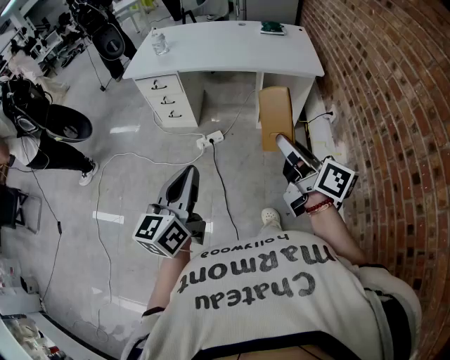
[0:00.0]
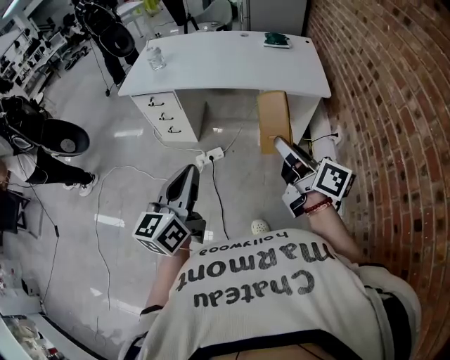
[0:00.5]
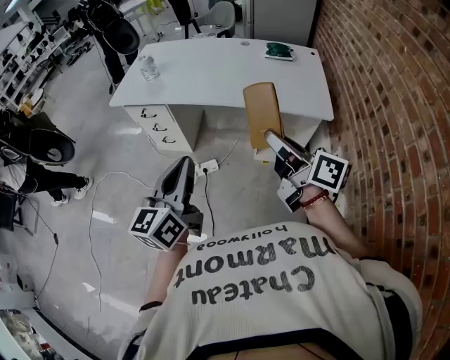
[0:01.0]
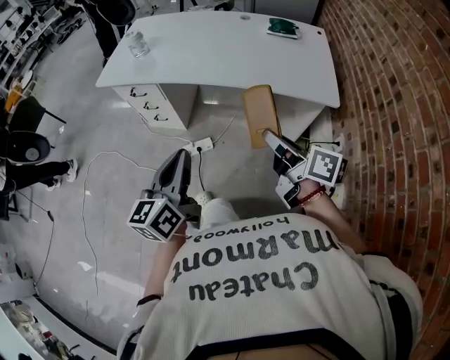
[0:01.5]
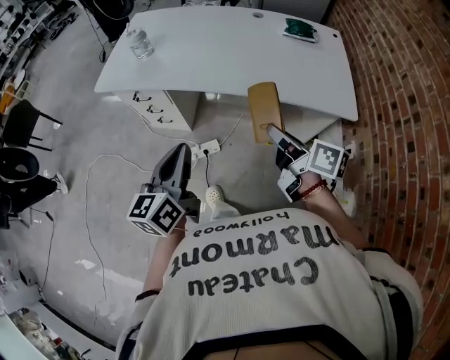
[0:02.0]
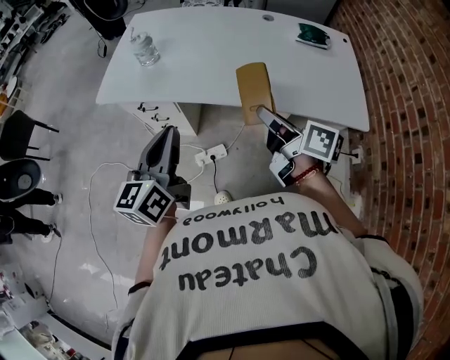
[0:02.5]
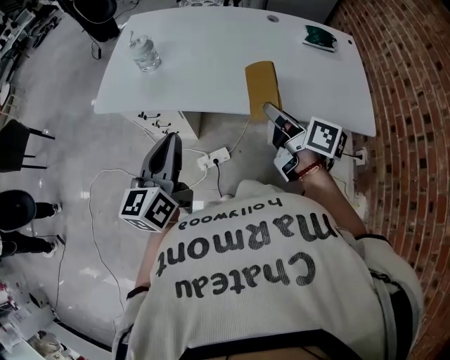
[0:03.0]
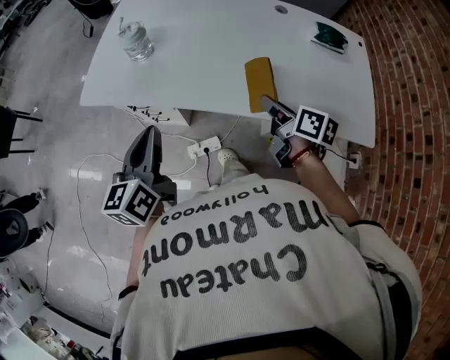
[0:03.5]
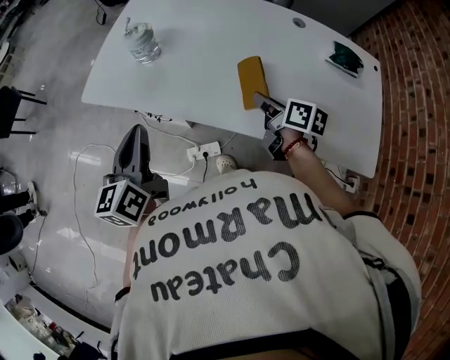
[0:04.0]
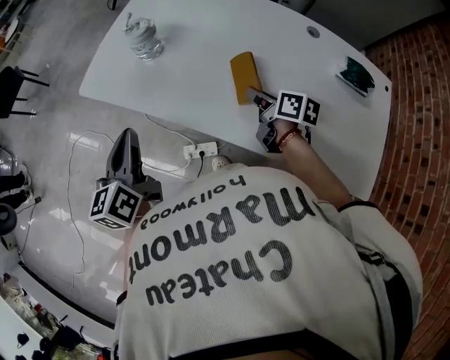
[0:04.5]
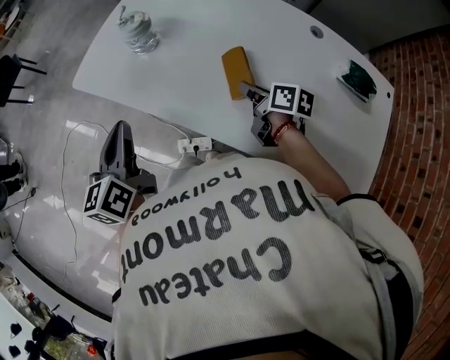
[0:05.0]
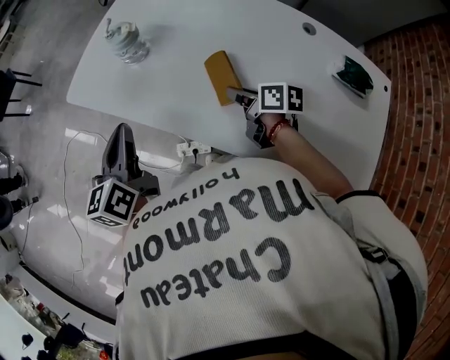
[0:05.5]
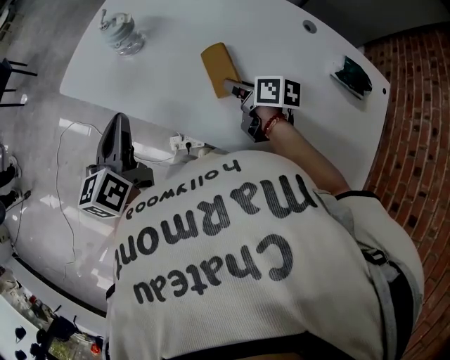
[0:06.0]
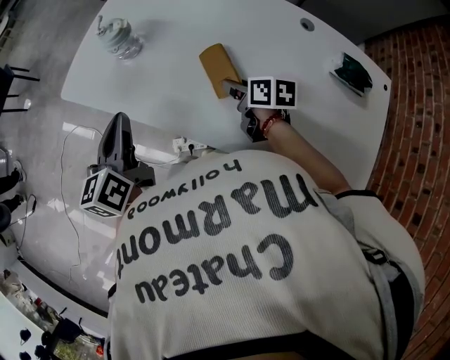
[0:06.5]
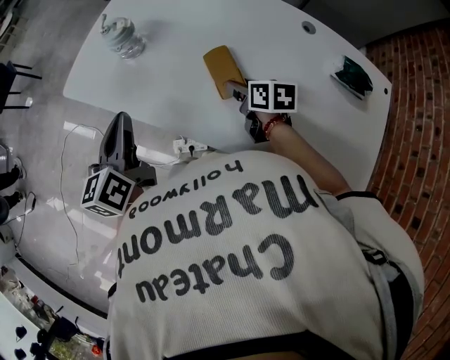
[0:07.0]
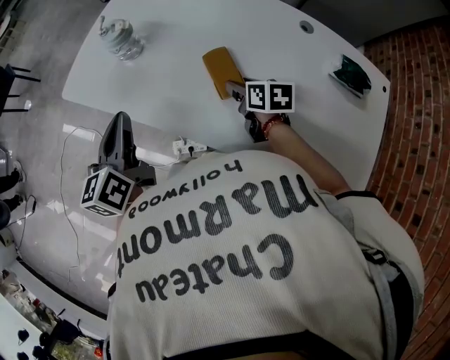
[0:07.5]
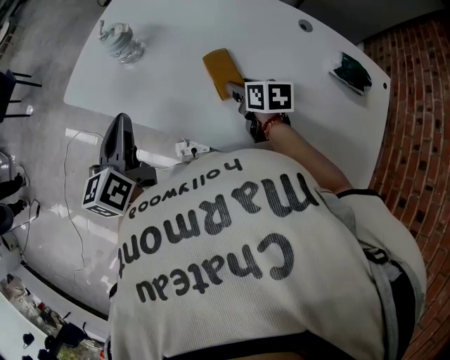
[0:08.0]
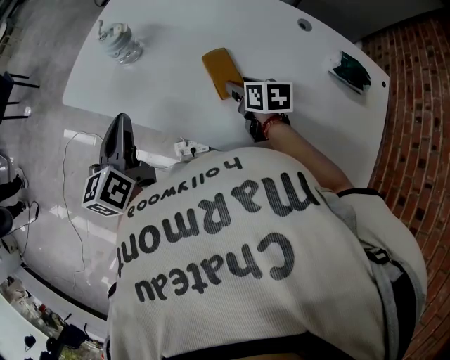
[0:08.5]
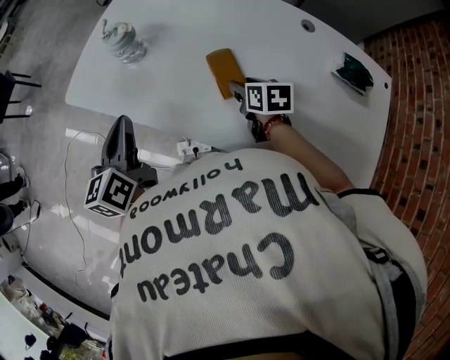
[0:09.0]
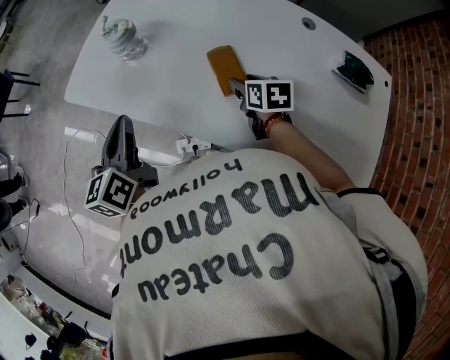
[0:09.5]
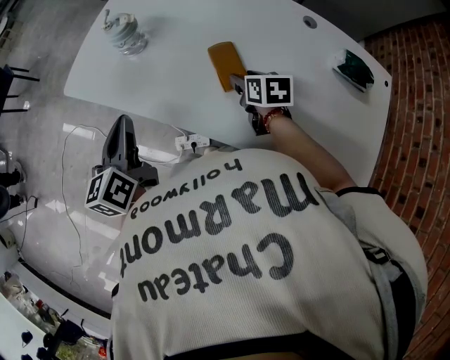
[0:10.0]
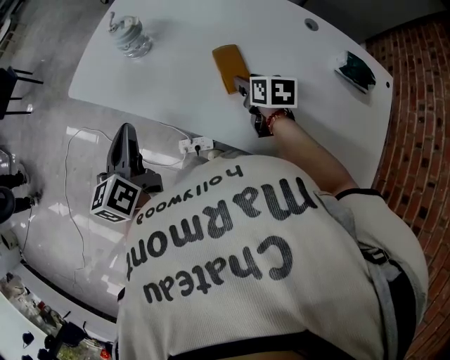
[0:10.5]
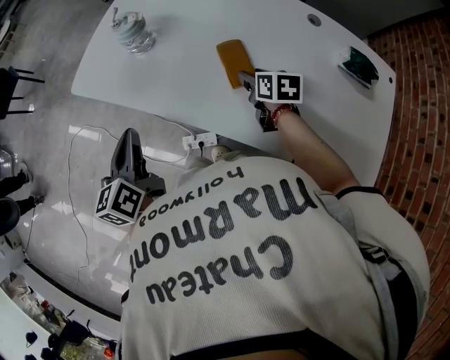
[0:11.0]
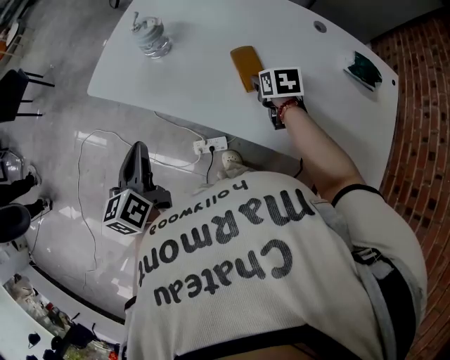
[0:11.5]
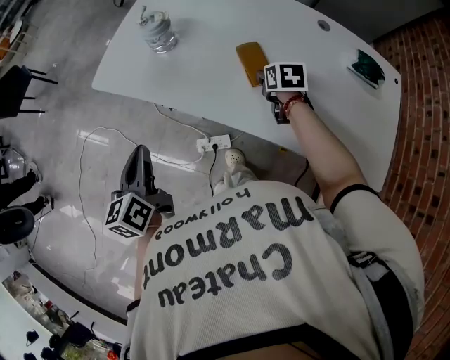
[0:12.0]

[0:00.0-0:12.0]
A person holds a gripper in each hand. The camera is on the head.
0:00.0 to 0:02.0: The two grippers travel together, forward, roughly 40 cm. The right gripper rotates about 20 degrees.
0:02.0 to 0:04.0: The left gripper moves forward and to the left, roughly 30 cm, while the right gripper travels forward by about 35 cm.
0:04.0 to 0:06.0: The right gripper is displaced forward and downward by approximately 10 cm, and rotates approximately 20 degrees. Meanwhile the left gripper moves forward, about 5 cm.
0:06.0 to 0:08.0: The right gripper opens up.
0:08.0 to 0:10.0: The grippers make only small movements.
0:10.0 to 0:12.0: The left gripper moves backward and to the left, about 10 cm.

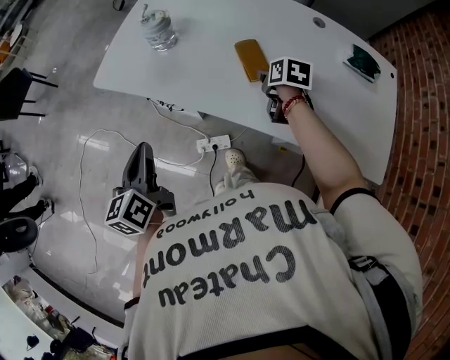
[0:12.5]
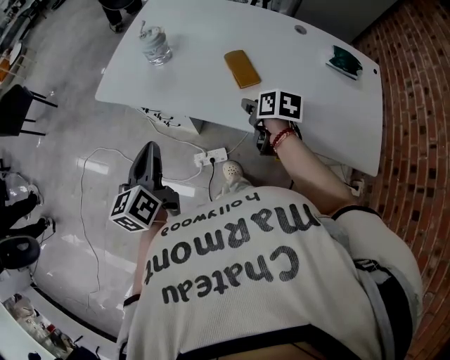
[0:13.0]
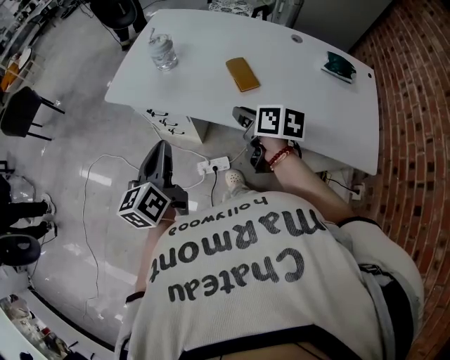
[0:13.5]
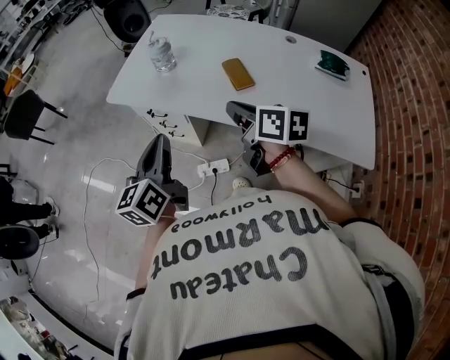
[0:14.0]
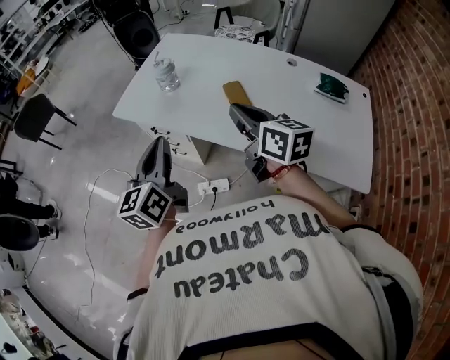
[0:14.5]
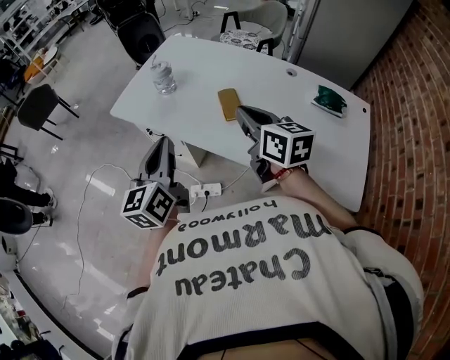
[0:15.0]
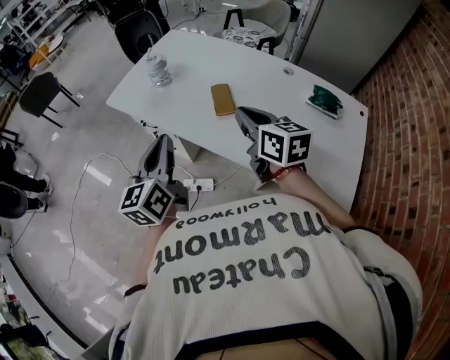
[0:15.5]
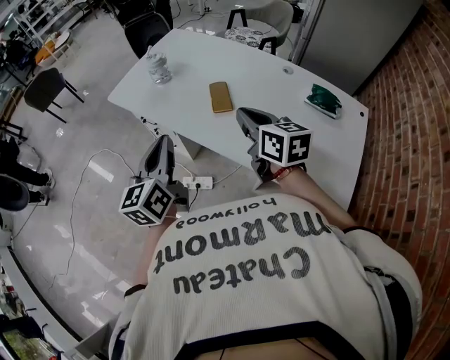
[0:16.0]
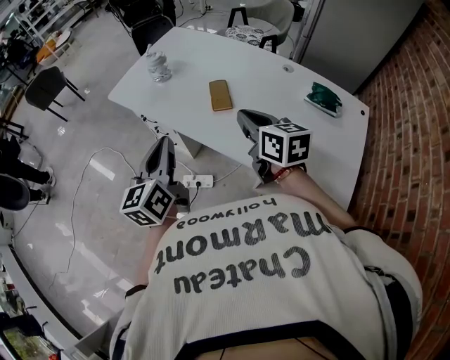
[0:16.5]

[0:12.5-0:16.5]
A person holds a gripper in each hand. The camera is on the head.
0:12.5 to 0:14.5: The left gripper travels upward, to the right and backward by some 15 cm; the right gripper travels upward, backward and to the left by some 30 cm, points its fingers roughly 40 degrees further upward, and closes its fingers.
0:14.5 to 0:16.5: The left gripper goes approximately 15 cm to the right and backward. The right gripper heads to the right, covering about 10 cm.

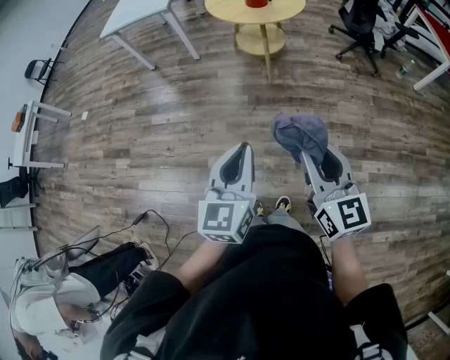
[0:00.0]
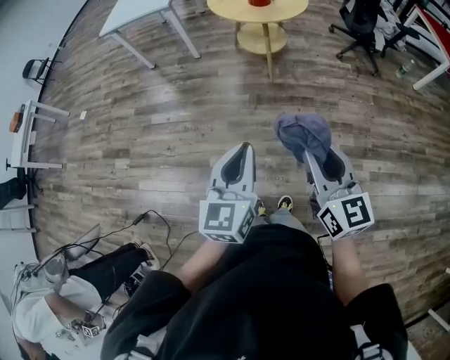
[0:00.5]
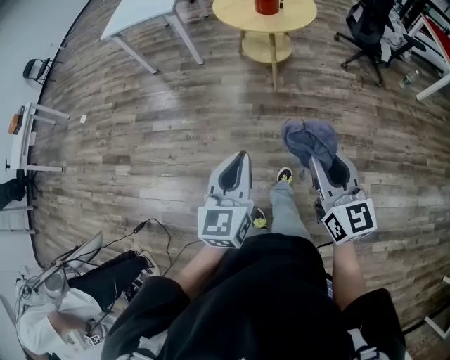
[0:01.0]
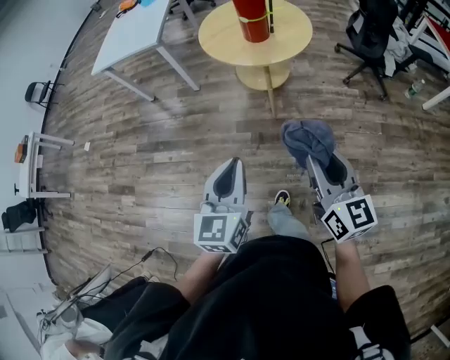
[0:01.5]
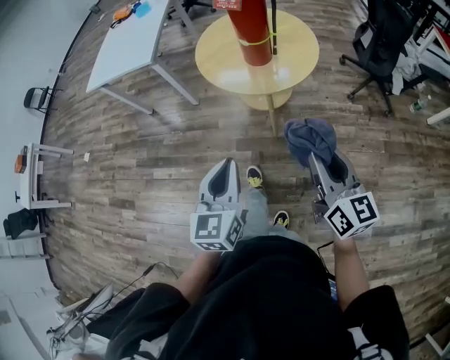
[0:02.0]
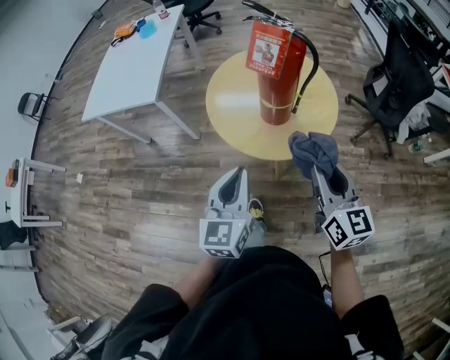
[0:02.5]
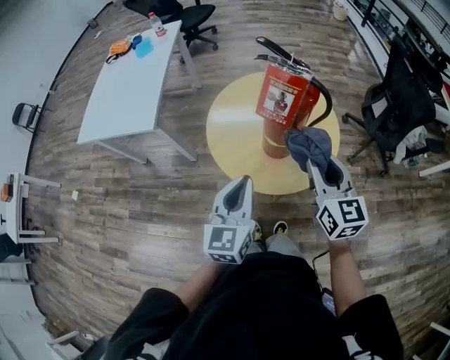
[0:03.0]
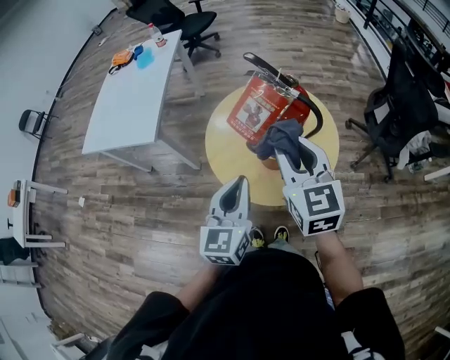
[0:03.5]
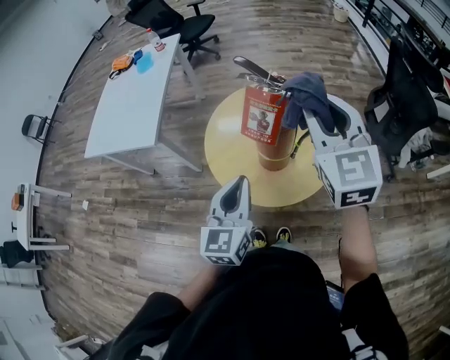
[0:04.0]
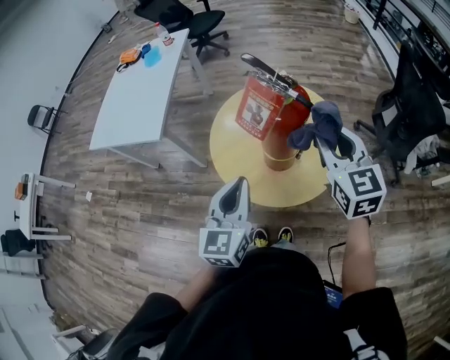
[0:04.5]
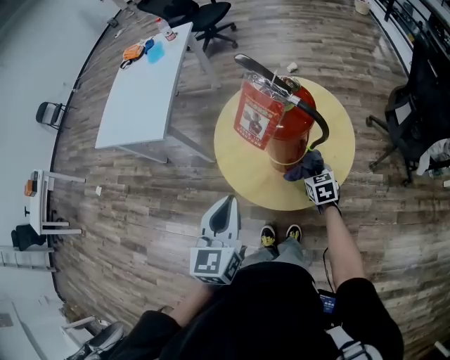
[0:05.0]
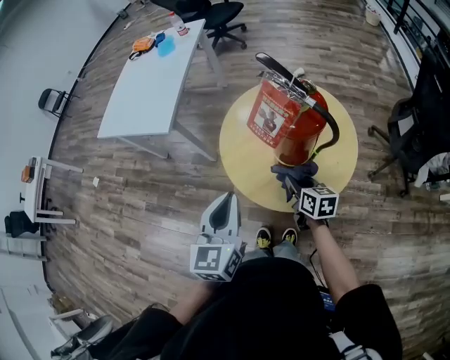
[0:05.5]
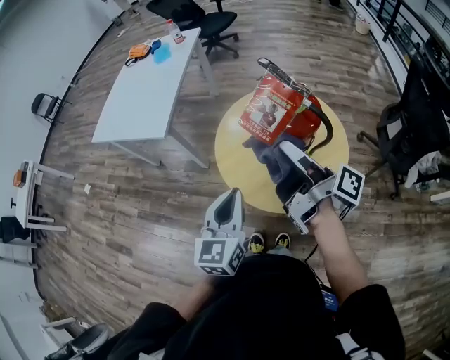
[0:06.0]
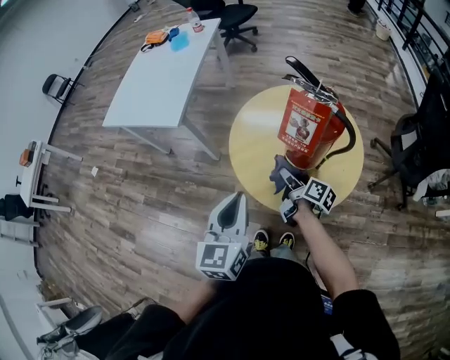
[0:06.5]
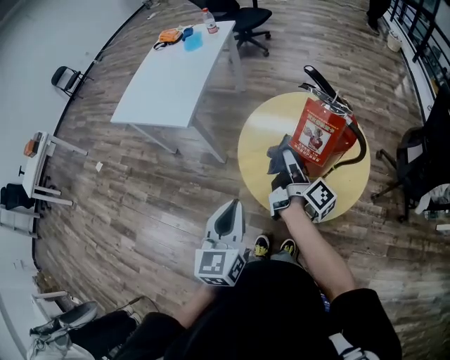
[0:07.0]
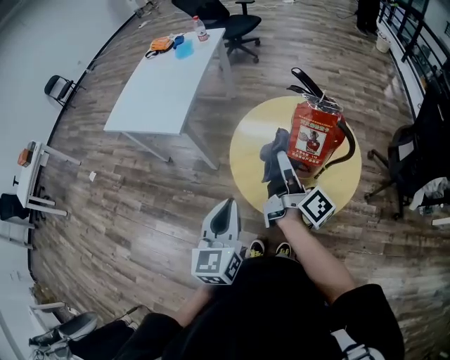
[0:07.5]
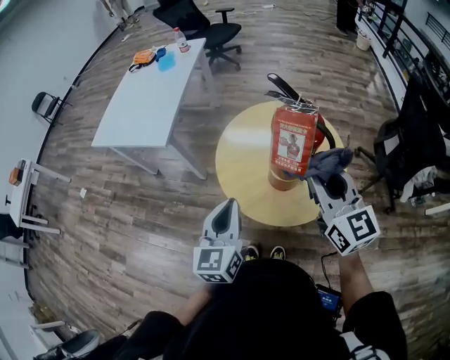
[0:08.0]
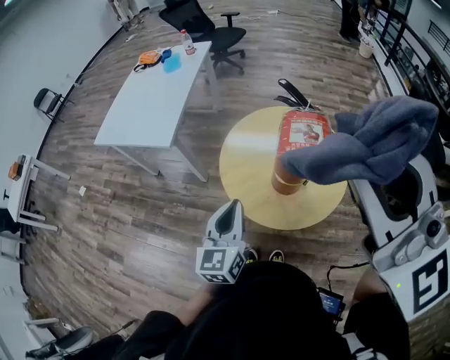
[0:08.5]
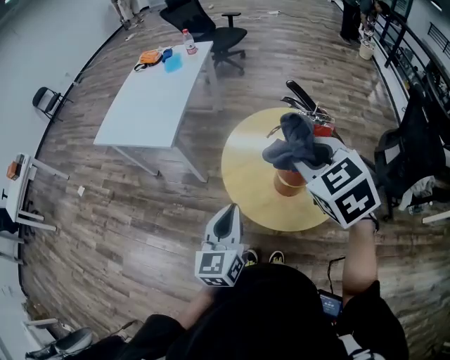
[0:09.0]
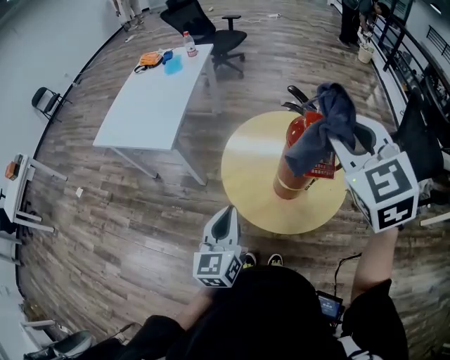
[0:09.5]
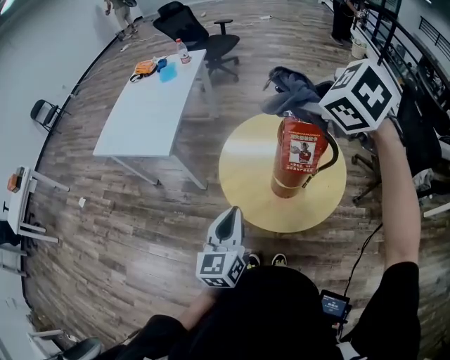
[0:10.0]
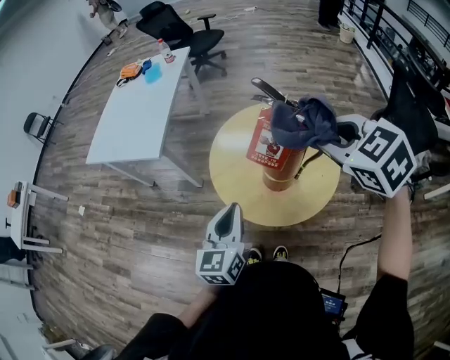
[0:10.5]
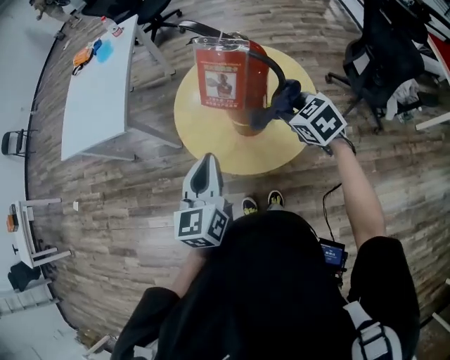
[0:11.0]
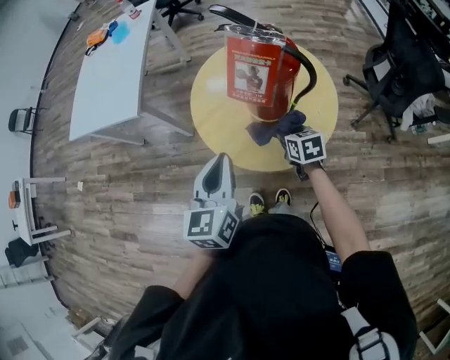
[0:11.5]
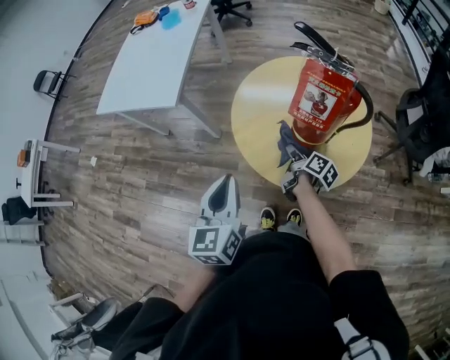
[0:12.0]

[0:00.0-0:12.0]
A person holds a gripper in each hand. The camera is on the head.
0:00.0 to 0:02.0: Both grippers are carried forward, approximately 40 cm.
0:02.0 to 0:04.0: Both grippers move forward, approximately 40 cm. The right gripper turns by roughly 40 degrees.
0:04.0 to 0:06.0: The right gripper is displaced to the left by roughly 10 cm, reaches about 40 cm downward, then returns, and twists approximately 110 degrees clockwise, seen from behind.
0:06.0 to 0:08.0: The right gripper travels downward and back again, roughly 25 cm each way, and rolls counterclockwise, seen from behind, by about 90 degrees.
0:08.0 to 0:10.0: The right gripper swings up and down, some 25 cm each way, with 2 reversals, and points its fingers approximately 40 degrees further downward.
0:10.0 to 0:12.0: The left gripper moves some 5 cm; the right gripper heads downward, covering roughly 40 cm, and twists roughly 100 degrees clockwise, seen from behind.
